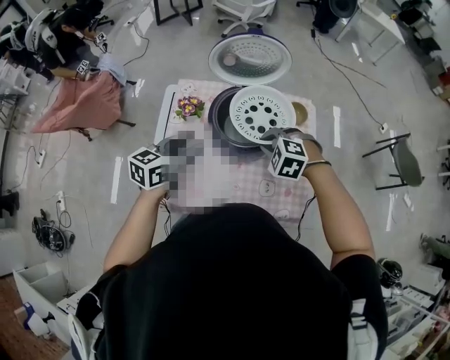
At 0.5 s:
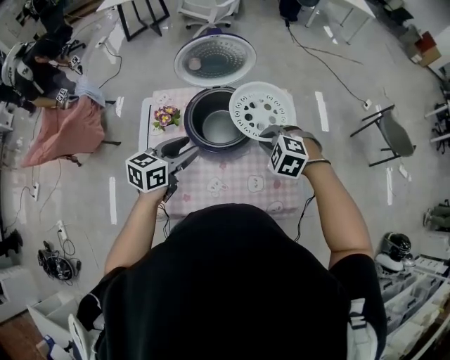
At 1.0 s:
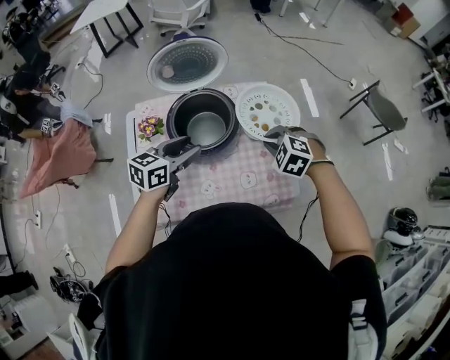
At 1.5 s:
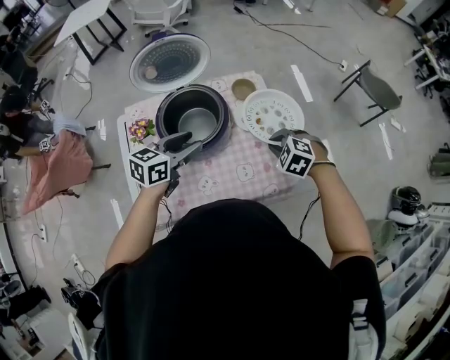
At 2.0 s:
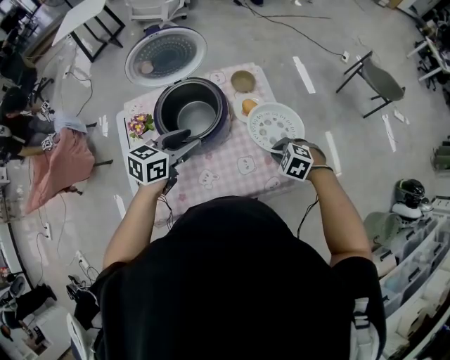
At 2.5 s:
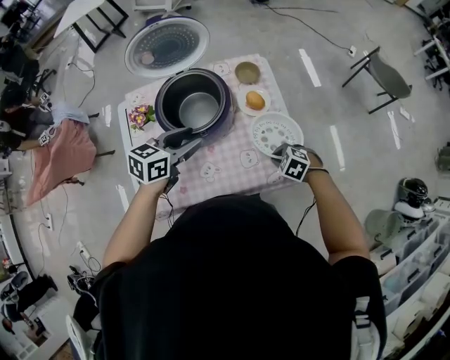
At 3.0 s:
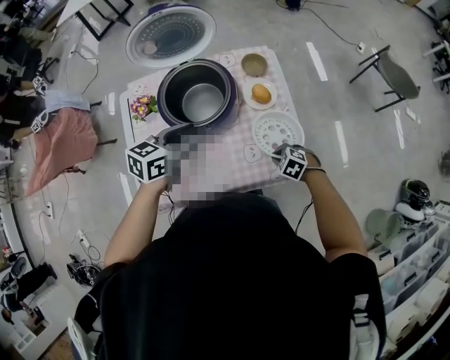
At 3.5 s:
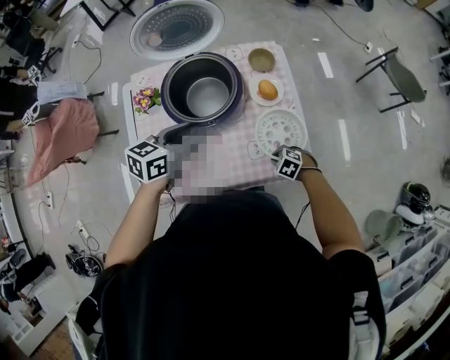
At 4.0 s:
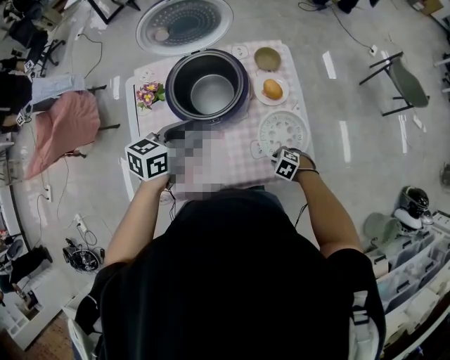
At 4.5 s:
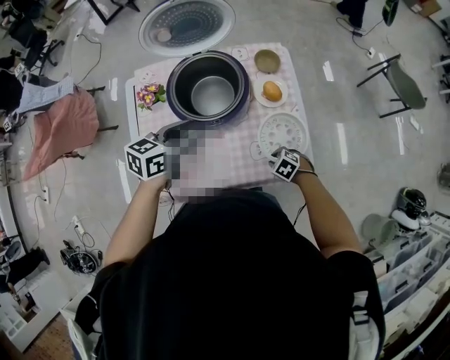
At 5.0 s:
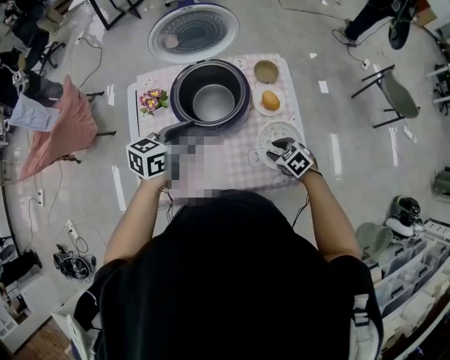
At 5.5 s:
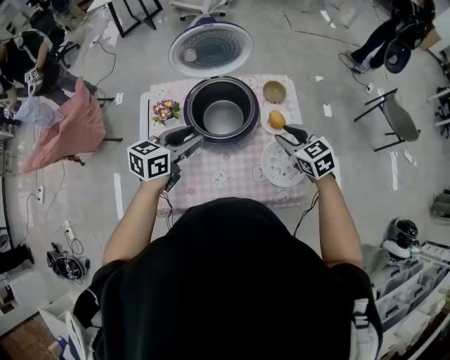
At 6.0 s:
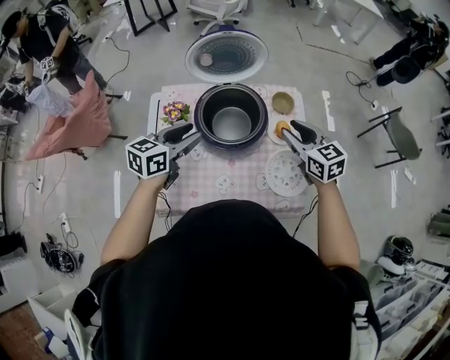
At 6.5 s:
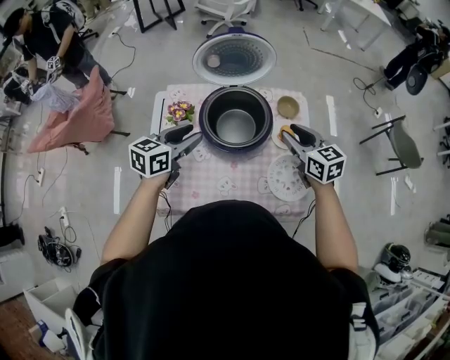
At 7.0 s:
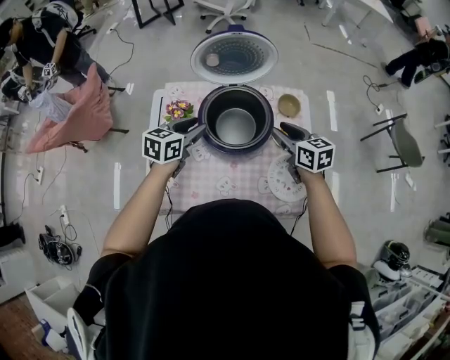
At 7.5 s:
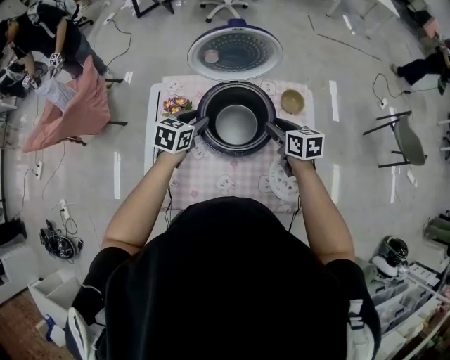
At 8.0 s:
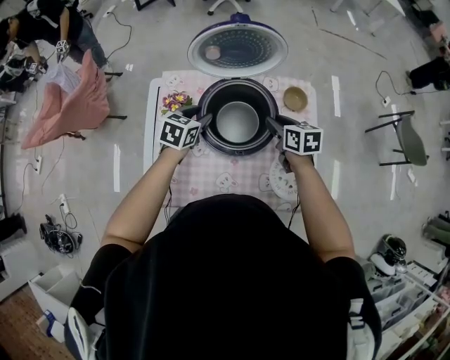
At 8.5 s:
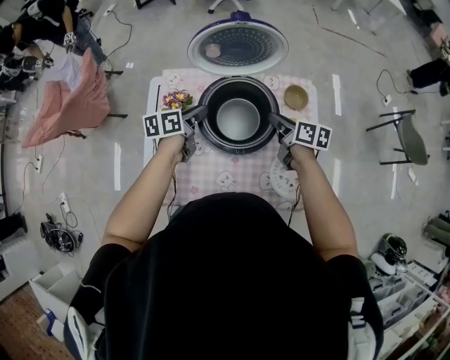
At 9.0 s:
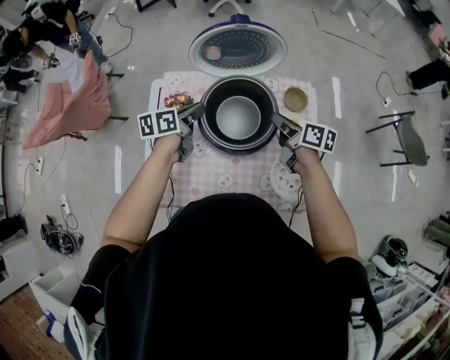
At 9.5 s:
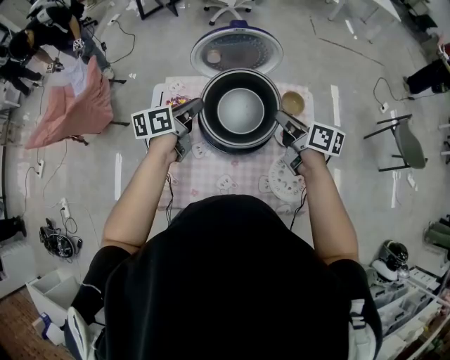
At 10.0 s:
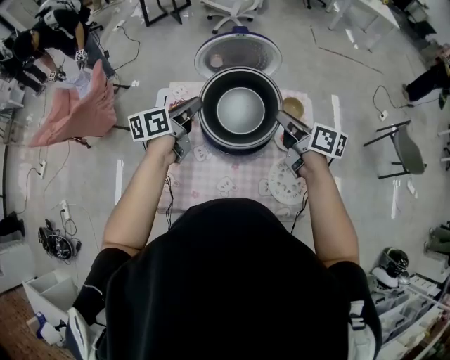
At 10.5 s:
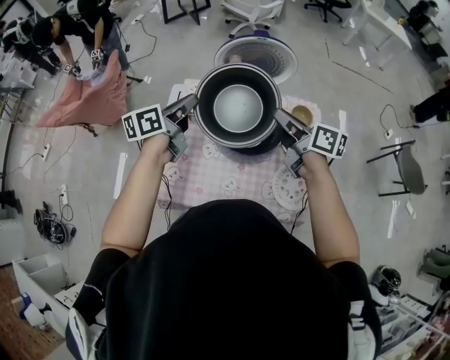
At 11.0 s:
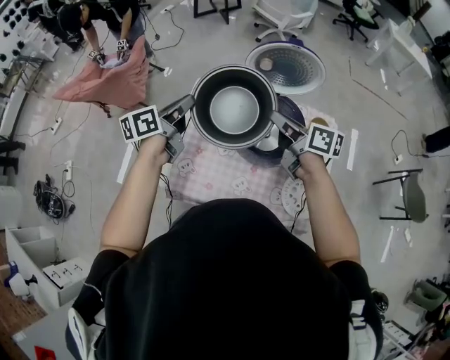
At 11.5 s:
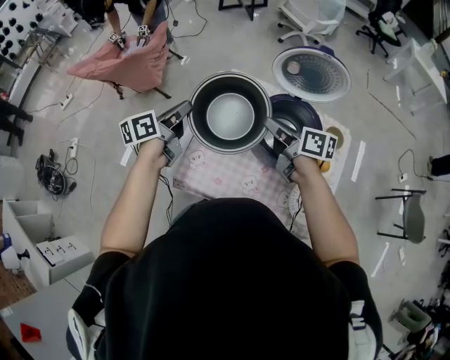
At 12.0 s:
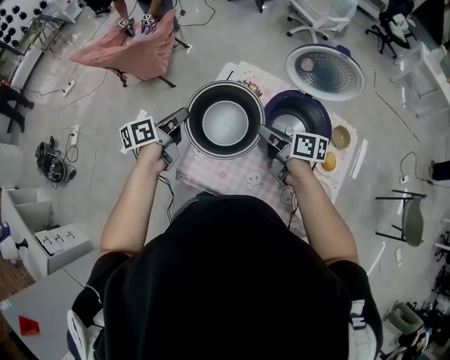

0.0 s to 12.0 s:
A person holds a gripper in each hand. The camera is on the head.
0.0 to 2.0 s: The grippers both shift to the right by about 20 cm. The left gripper rotates about 20 degrees. The right gripper swivels approximately 30 degrees.
2.0 to 4.0 s: The left gripper changes place by roughly 5 cm, while the right gripper shifts some 20 cm downward.
4.0 to 6.0 s: The right gripper travels upward by roughly 35 cm, and points its fingers some 50 degrees further upward. Meanwhile the left gripper shifts by about 10 cm.
6.0 to 8.0 s: The right gripper shifts some 20 cm downward, forward and to the left, and rotates about 30 degrees; the left gripper goes about 20 cm downward and forward, and rotates approximately 20 degrees.
8.0 to 10.0 s: Both grippers travel together upward, some 15 cm. The left gripper rotates roughly 40 degrees, and closes up, while the right gripper turns by about 30 degrees.
10.0 to 12.0 s: The left gripper shifts by some 30 cm, and changes its angle by roughly 30 degrees. Meanwhile the right gripper ends up approximately 25 cm from where it was, and swivels roughly 30 degrees.

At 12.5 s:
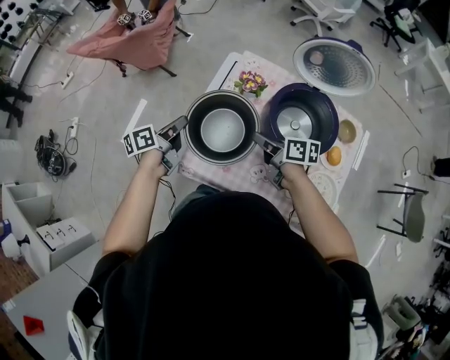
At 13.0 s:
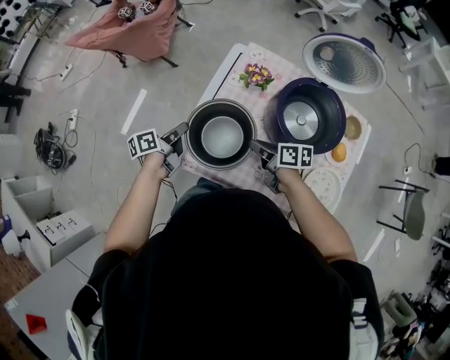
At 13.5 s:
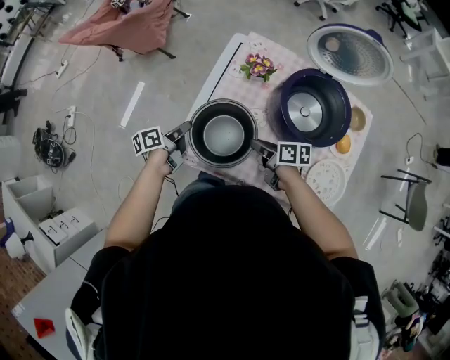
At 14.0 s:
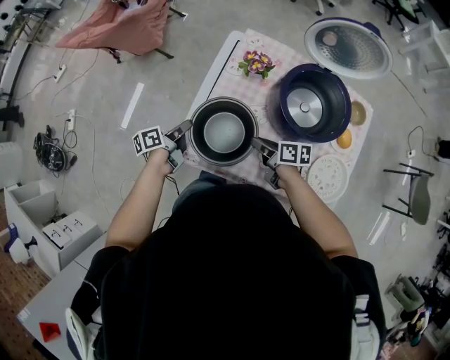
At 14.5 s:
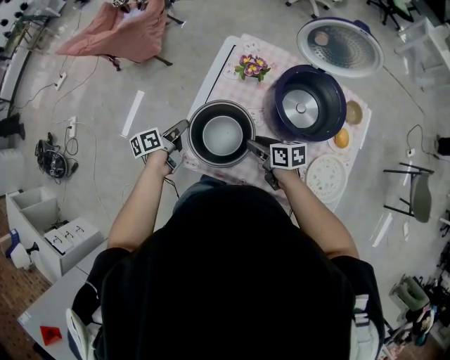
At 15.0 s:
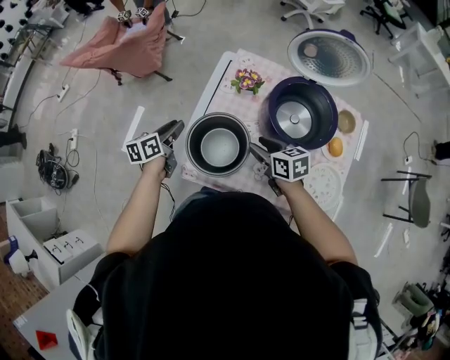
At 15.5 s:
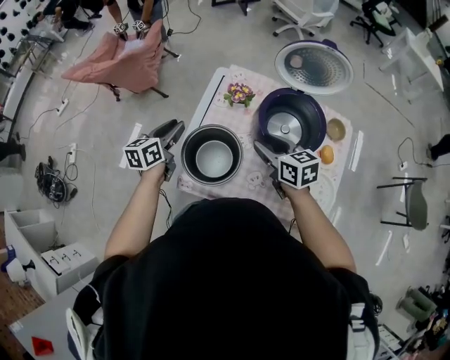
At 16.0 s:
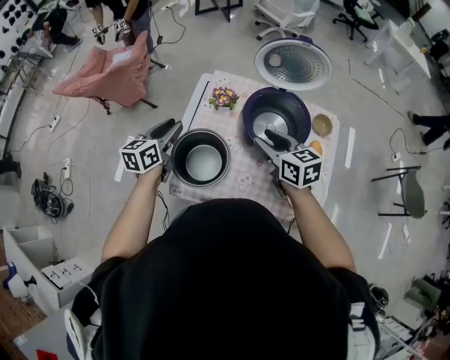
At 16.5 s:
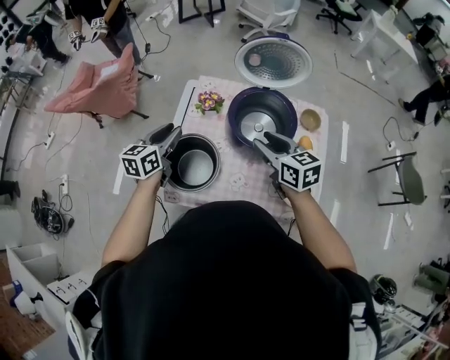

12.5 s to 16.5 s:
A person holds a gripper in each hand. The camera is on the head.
12.5 to 14.5 s: The two grippers go some 10 cm downward. The right gripper opens.
14.5 to 16.5 s: The two grippers go about 25 cm upward and to the right. The right gripper rotates approximately 30 degrees. Meanwhile the left gripper rotates around the line of its fingers by approximately 40 degrees, clockwise from behind.

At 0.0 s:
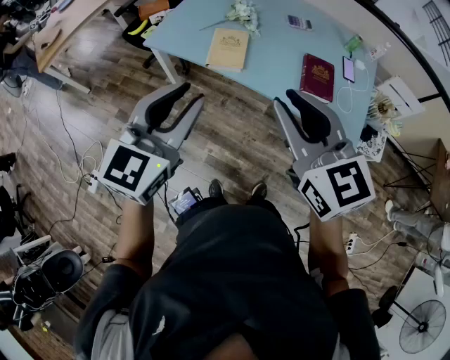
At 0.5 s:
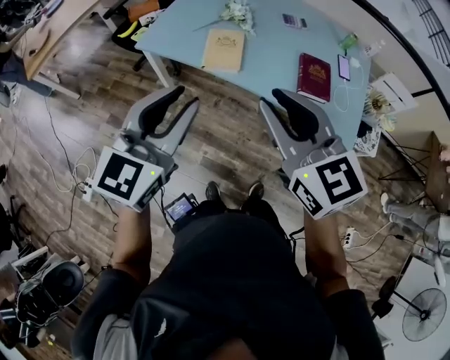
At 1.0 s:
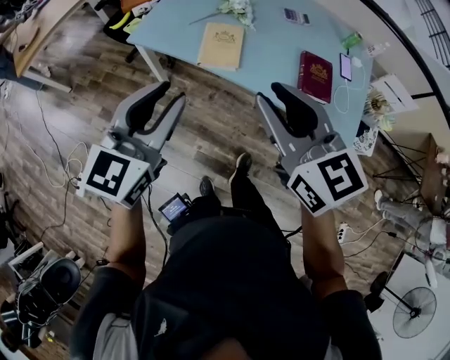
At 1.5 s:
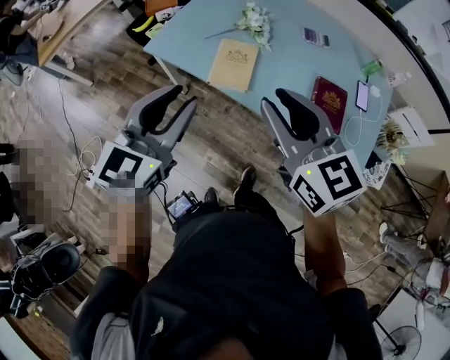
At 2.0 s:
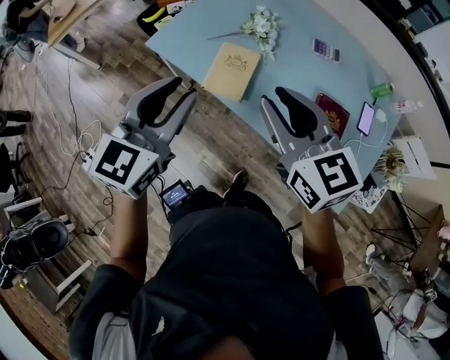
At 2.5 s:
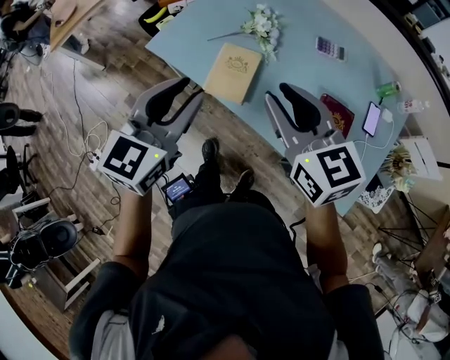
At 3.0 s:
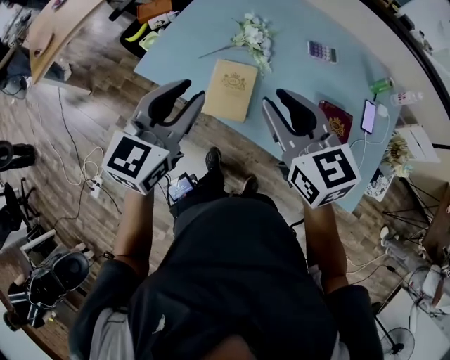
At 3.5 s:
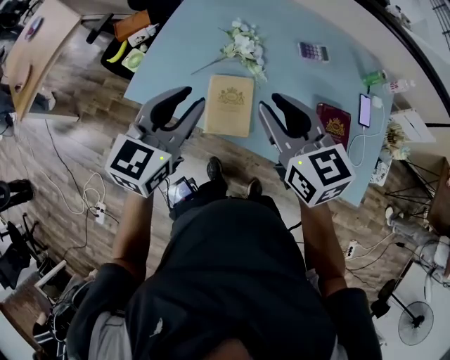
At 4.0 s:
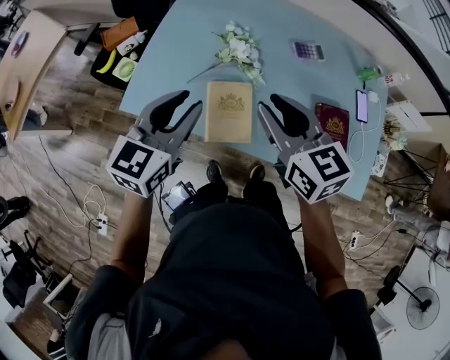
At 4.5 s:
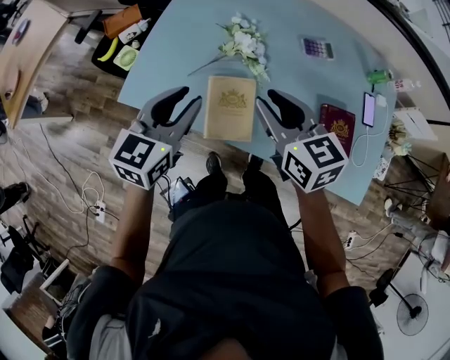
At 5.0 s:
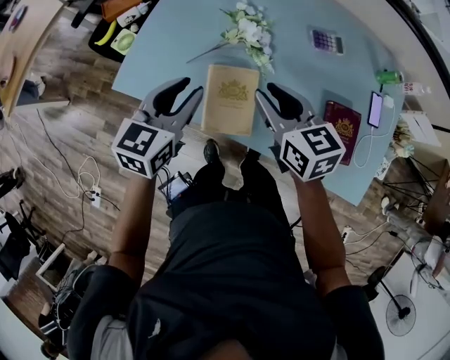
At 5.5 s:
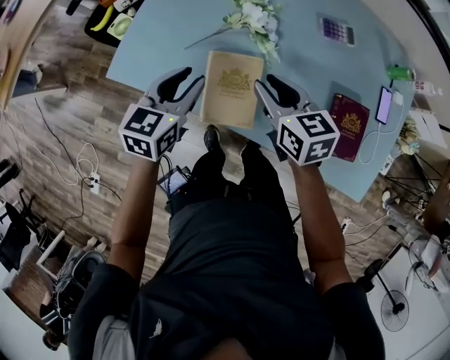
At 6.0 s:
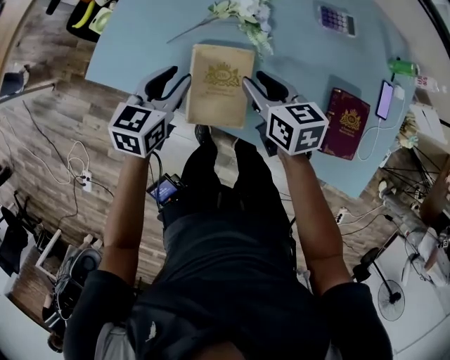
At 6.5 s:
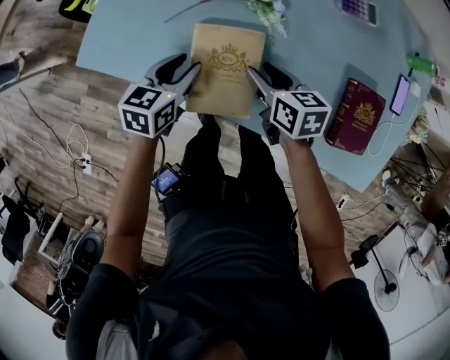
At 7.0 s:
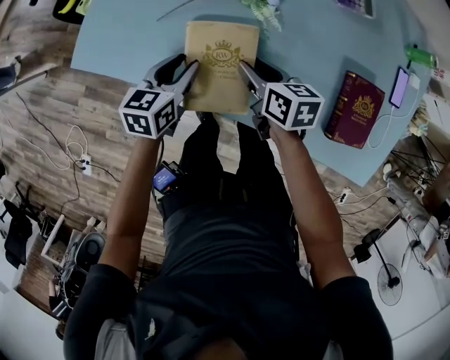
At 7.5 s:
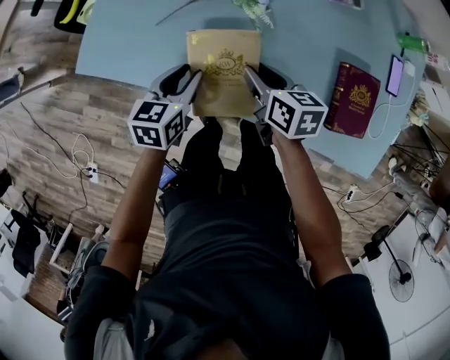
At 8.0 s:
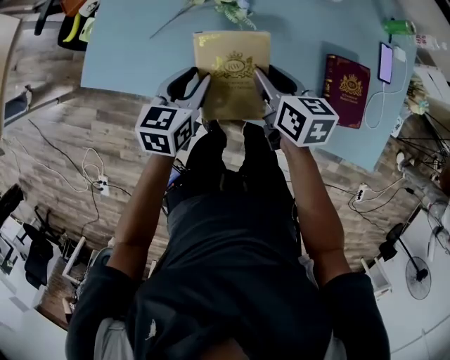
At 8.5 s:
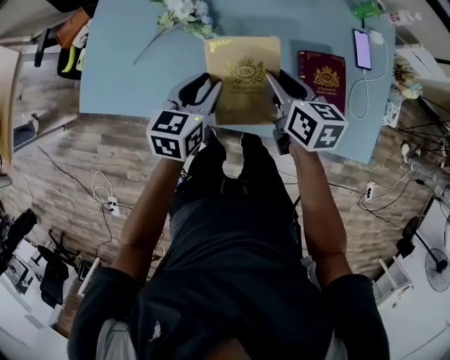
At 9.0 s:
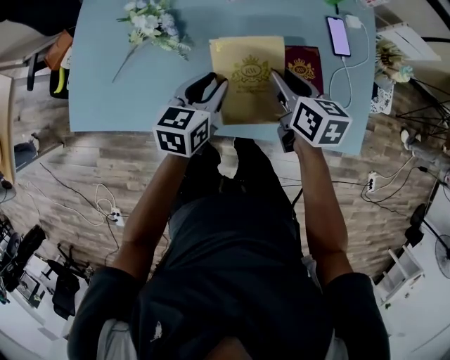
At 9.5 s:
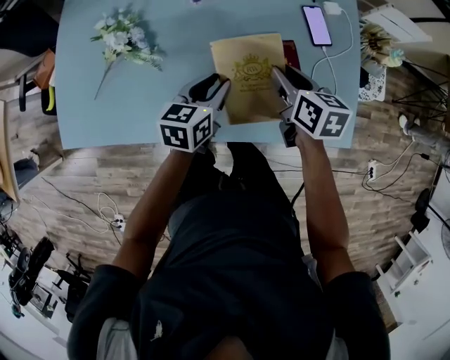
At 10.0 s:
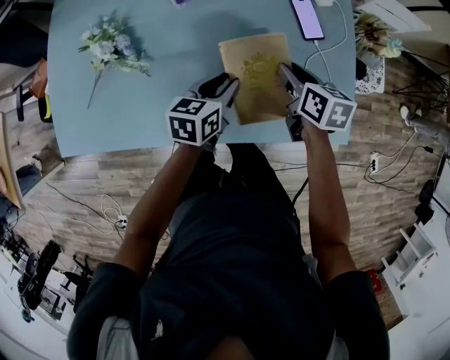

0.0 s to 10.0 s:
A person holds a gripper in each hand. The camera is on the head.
0.0 to 2.0 s: The grippers both shift forward by some 20 cm.
2.0 to 4.0 s: The grippers both shift forward by some 20 cm. The left gripper rotates about 20 degrees, while the right gripper rotates roughly 20 degrees.
4.0 to 6.0 s: Both grippers travel together downward, approximately 25 cm. The left gripper changes its angle by approximately 20 degrees. The right gripper rotates approximately 30 degrees.
6.0 to 8.0 s: The grippers both shift to the right by roughly 10 cm. The right gripper moves roughly 10 cm downward and comes back. Meanwhile the left gripper moves roughly 10 cm downward and comes back.
8.0 to 10.0 s: Both grippers travel together to the right, about 35 cm. The right gripper changes its angle by about 20 degrees. The left gripper changes its angle by some 20 degrees.
